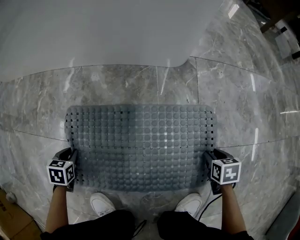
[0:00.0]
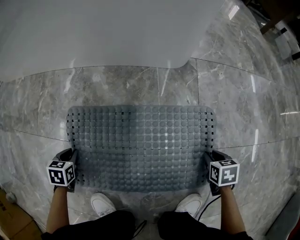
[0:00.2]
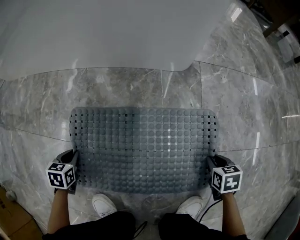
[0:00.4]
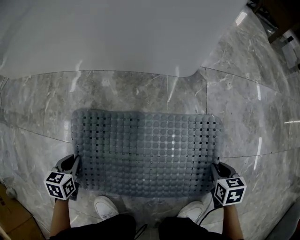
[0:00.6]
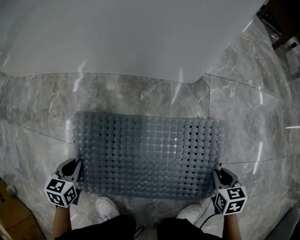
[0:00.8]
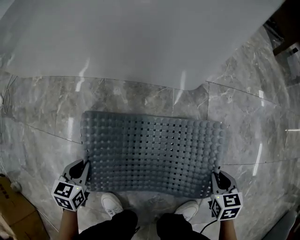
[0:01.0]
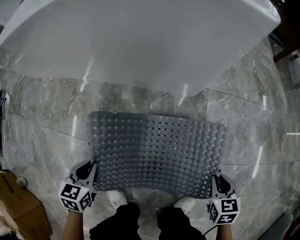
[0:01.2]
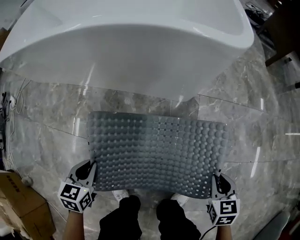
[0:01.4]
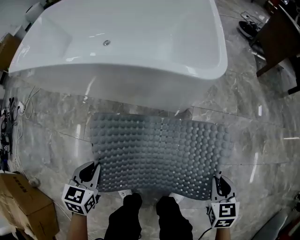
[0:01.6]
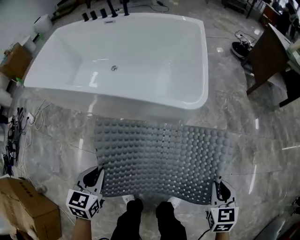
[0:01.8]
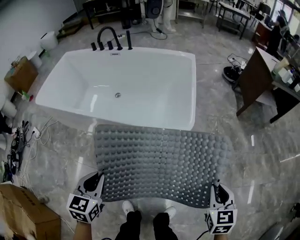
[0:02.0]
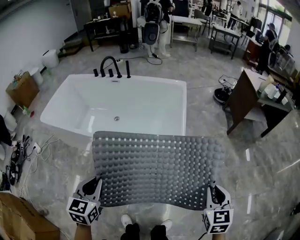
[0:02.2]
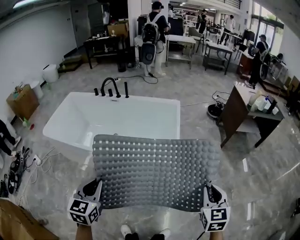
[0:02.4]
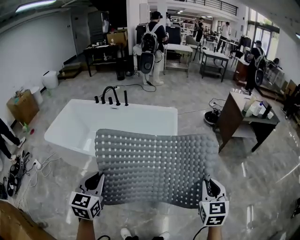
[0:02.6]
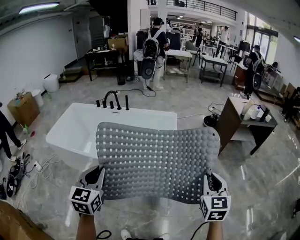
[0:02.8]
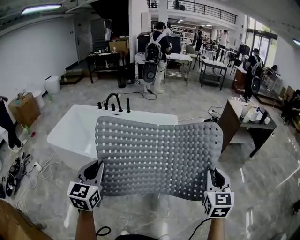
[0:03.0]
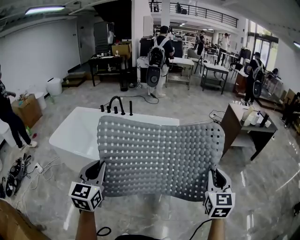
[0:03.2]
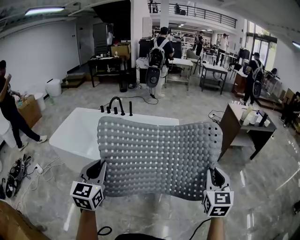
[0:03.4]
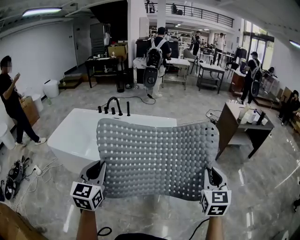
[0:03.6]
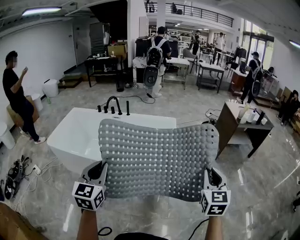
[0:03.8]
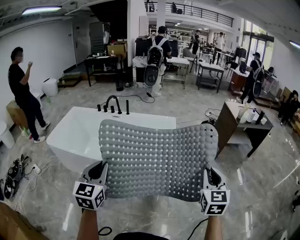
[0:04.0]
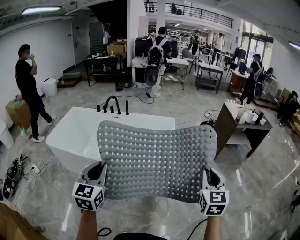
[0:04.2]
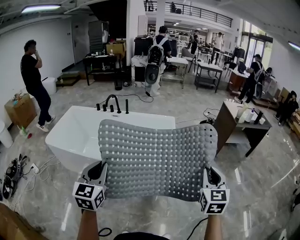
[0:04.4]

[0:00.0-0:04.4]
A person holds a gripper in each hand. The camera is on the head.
0:00.0 to 0:01.4: Both grippers move upward, about 35 cm. The right gripper changes its angle by about 20 degrees.
0:01.4 to 0:03.0: Both grippers move upward, some 80 cm. The right gripper tilts its fingers approximately 40 degrees upward, while the left gripper tilts its fingers approximately 40 degrees upward.
0:03.0 to 0:04.4: The grippers stay close to where they were, moving slightly.

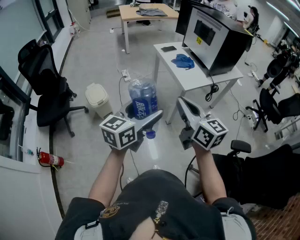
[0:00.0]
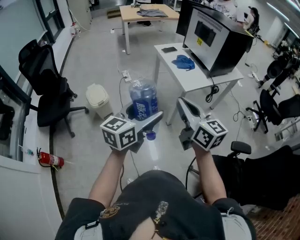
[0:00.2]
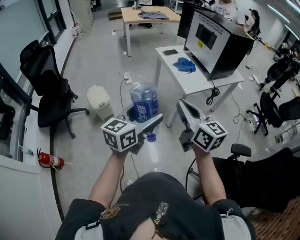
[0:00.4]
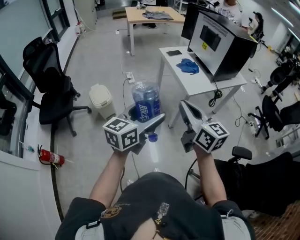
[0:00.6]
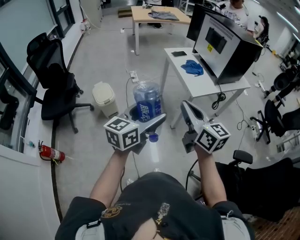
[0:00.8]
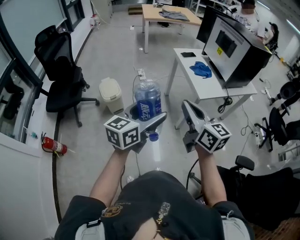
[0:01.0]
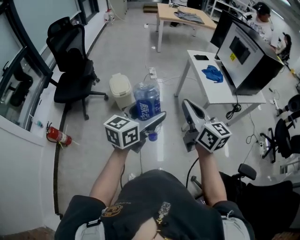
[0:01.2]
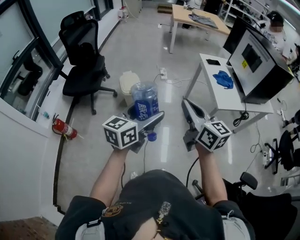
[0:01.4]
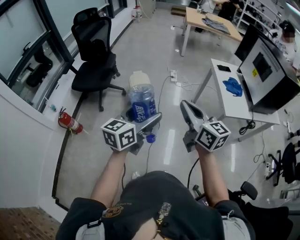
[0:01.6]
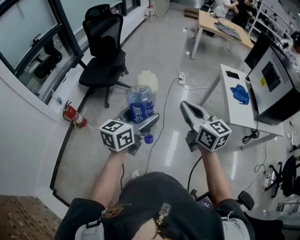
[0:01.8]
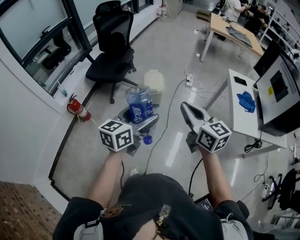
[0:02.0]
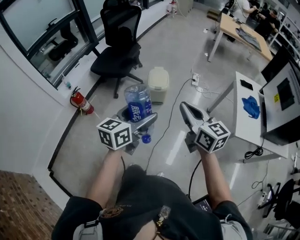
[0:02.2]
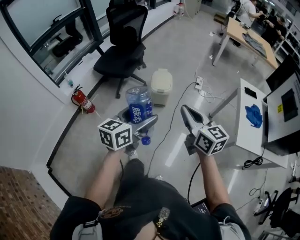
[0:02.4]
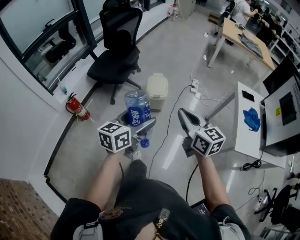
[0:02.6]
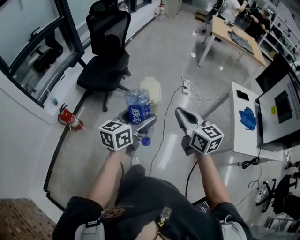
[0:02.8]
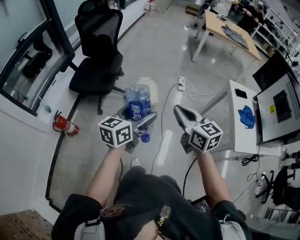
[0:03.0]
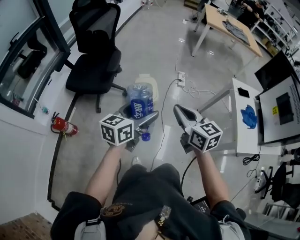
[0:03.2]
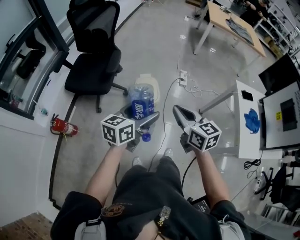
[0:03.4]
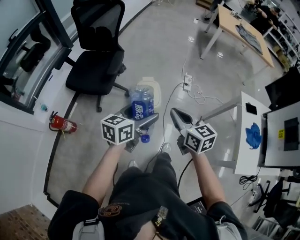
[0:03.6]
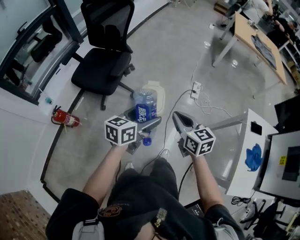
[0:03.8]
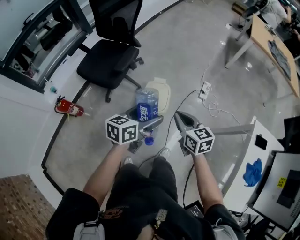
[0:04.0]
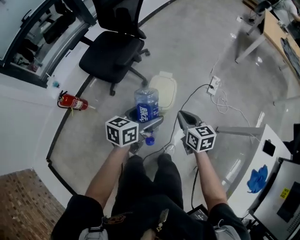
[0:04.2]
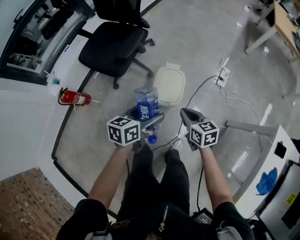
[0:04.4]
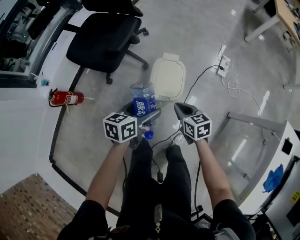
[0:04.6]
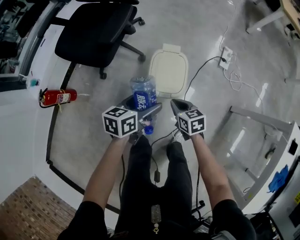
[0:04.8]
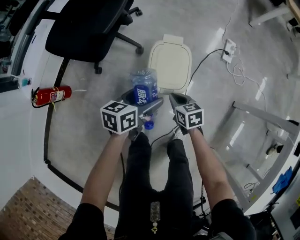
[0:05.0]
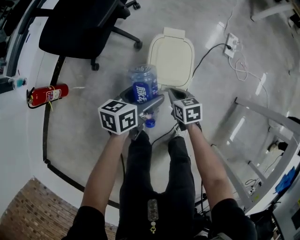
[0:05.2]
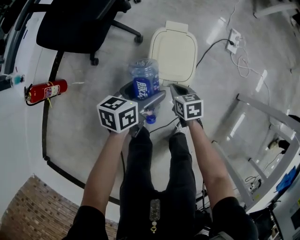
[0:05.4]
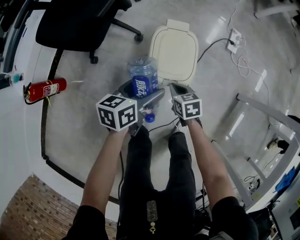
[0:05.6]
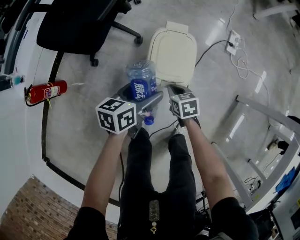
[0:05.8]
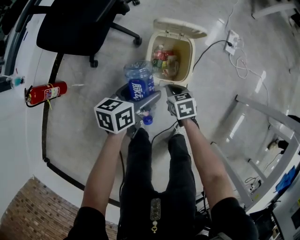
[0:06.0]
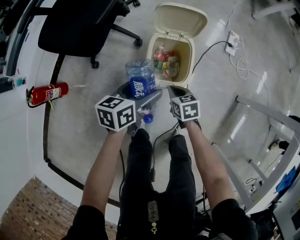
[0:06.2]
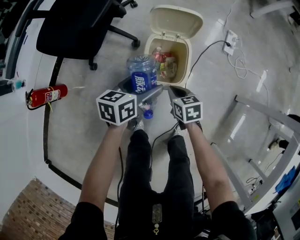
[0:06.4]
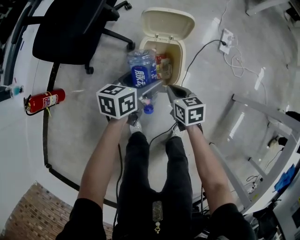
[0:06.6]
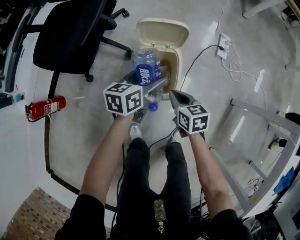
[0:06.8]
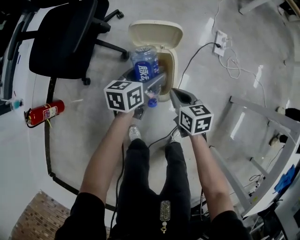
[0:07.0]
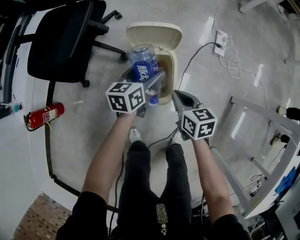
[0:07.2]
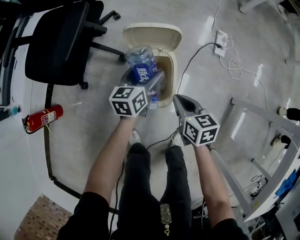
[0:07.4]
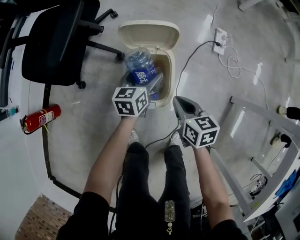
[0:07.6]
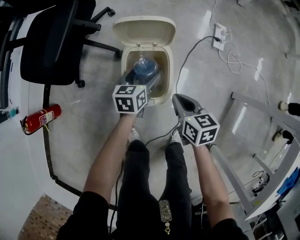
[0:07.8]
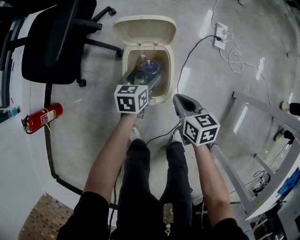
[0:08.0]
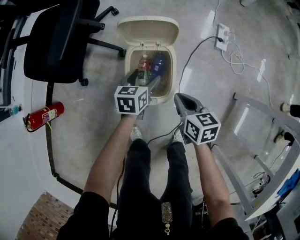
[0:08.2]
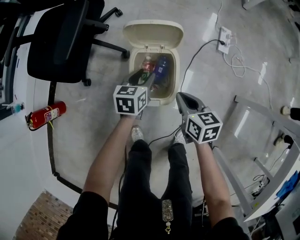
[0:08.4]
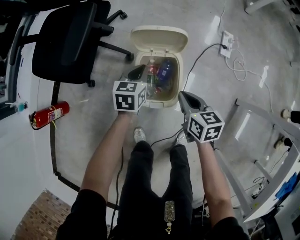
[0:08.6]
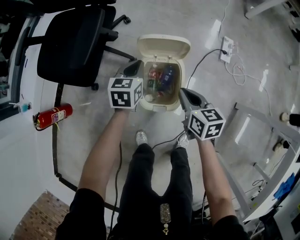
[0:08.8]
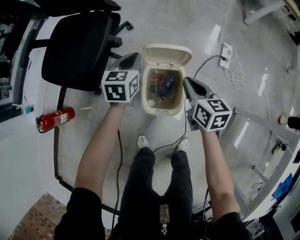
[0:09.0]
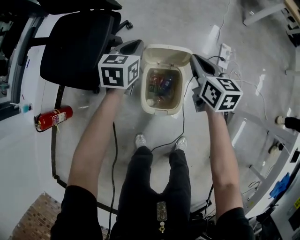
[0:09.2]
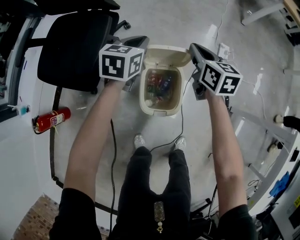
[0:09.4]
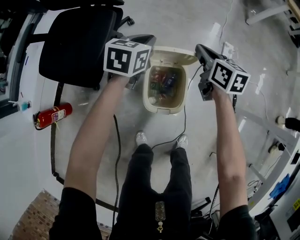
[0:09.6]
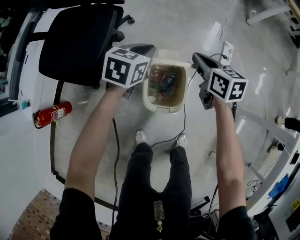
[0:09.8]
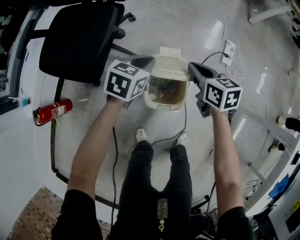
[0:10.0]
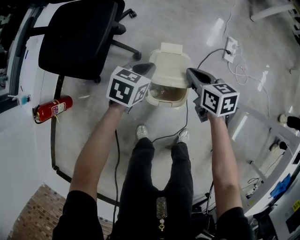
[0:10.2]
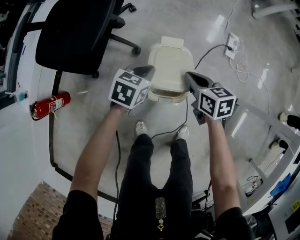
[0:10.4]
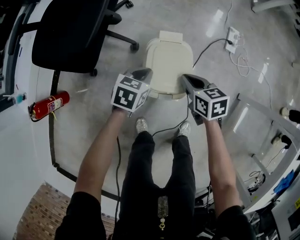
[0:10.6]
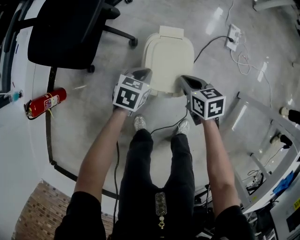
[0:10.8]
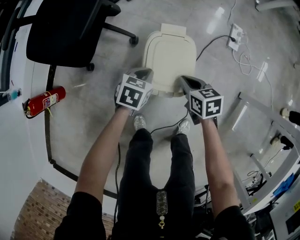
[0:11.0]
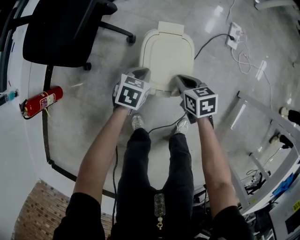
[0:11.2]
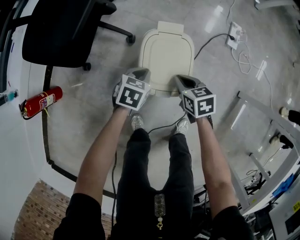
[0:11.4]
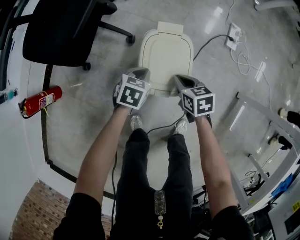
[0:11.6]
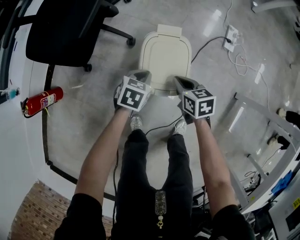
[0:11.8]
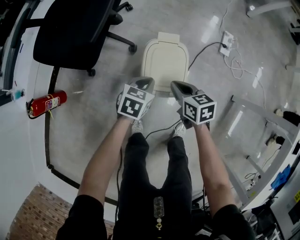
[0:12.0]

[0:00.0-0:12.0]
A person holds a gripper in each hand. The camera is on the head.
0:00.0 to 0:01.6: The left gripper changes place by approximately 20 cm, and changes its angle by approximately 30 degrees; the right gripper shifts by about 15 cm, and swivels some 30 degrees.
0:01.6 to 0:03.0: The two grippers go some 20 cm forward.
0:03.0 to 0:04.4: The left gripper goes approximately 35 cm forward and downward, and rotates approximately 30 degrees. Meanwhile the right gripper travels downward and forward by roughly 40 cm, and rotates approximately 30 degrees.
0:04.4 to 0:06.0: The two grippers go approximately 25 cm downward. The right gripper swivels approximately 20 degrees.
0:06.0 to 0:07.6: The right gripper heads to the right and upward, covering approximately 15 cm, and turns by some 20 degrees, while the left gripper travels forward, to the right and downward by about 20 cm.
0:07.6 to 0:09.0: The left gripper travels upward, forward and to the left by roughly 20 cm, and closes. The right gripper heads forward and upward, covering about 15 cm.
0:09.0 to 0:10.4: The right gripper heads downward, covering approximately 5 cm, and reaches approximately 10 cm forward, then returns. The left gripper heads backward and downward, covering approximately 10 cm, and changes its angle by some 30 degrees.
0:10.4 to 0:12.0: The two grippers go some 5 cm backward. The left gripper reaches roughly 10 cm downward, then returns. The right gripper reaches roughly 10 cm downward, then returns.

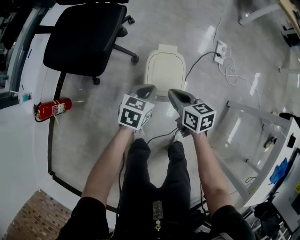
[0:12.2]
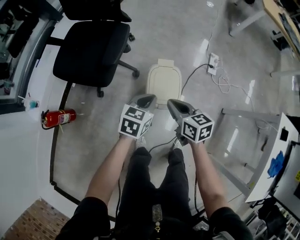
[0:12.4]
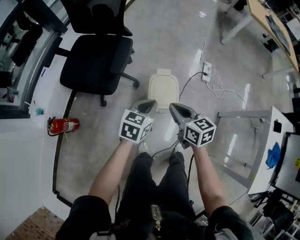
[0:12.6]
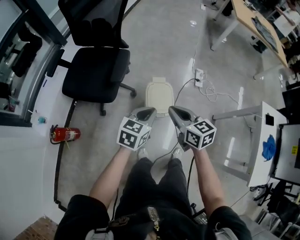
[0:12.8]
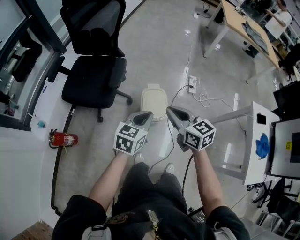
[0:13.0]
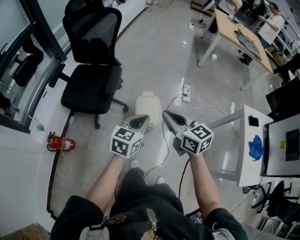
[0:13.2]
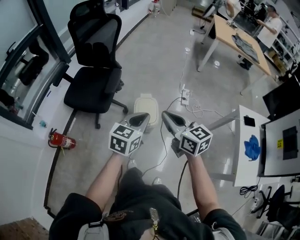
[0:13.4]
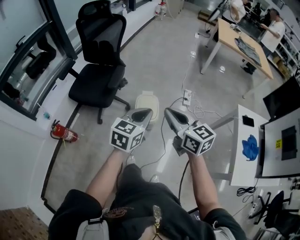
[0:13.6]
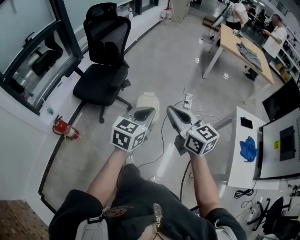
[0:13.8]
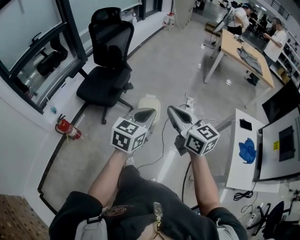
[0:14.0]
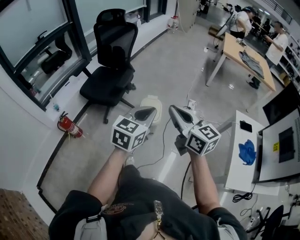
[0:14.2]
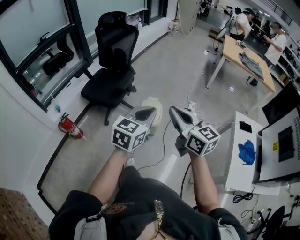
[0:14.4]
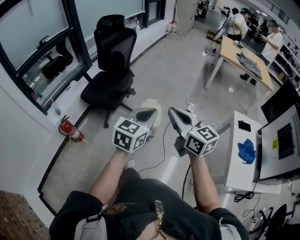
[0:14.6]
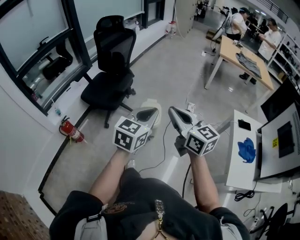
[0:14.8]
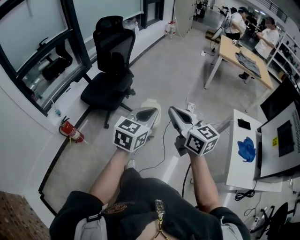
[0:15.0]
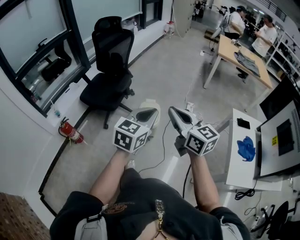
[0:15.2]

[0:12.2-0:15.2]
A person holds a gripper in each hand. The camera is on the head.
0:12.2 to 0:13.8: The grippers both shift upward and backward by roughly 50 cm. The right gripper swivels about 40 degrees, while the left gripper changes its angle by approximately 30 degrees.
0:13.8 to 0:15.2: The right gripper heads backward, covering roughly 5 cm, while the left gripper shifts some 10 cm backward and upward.

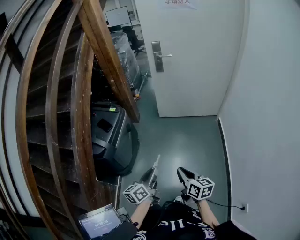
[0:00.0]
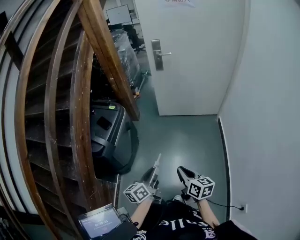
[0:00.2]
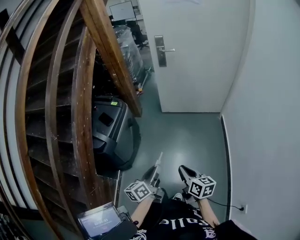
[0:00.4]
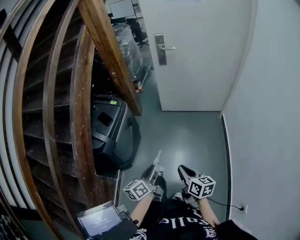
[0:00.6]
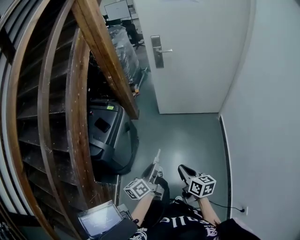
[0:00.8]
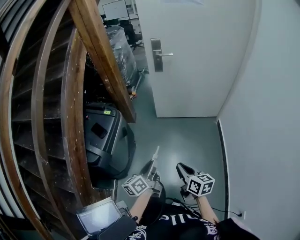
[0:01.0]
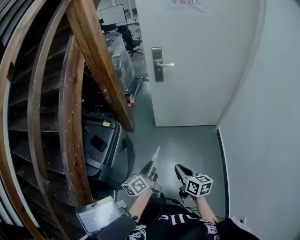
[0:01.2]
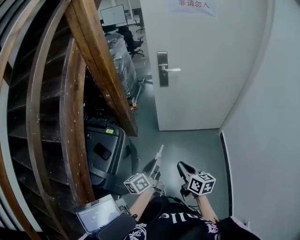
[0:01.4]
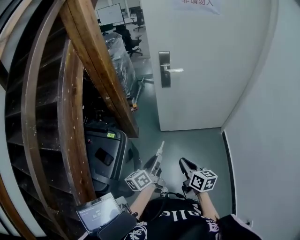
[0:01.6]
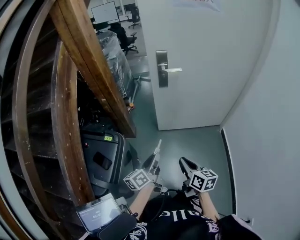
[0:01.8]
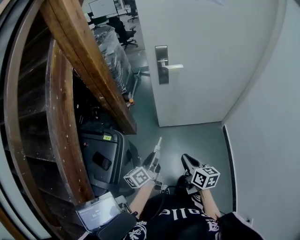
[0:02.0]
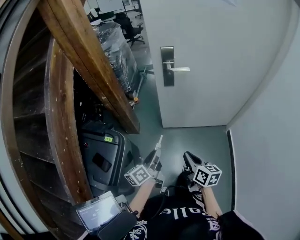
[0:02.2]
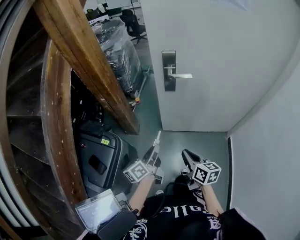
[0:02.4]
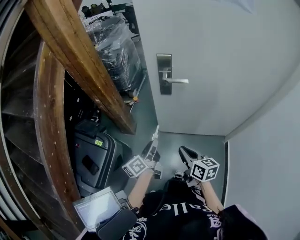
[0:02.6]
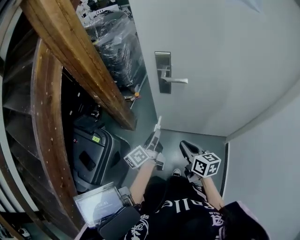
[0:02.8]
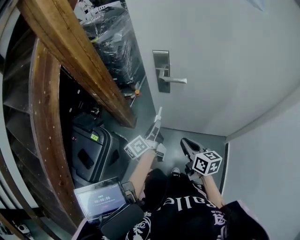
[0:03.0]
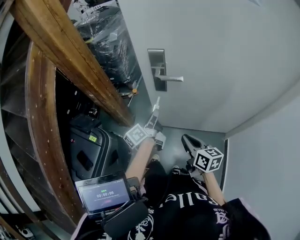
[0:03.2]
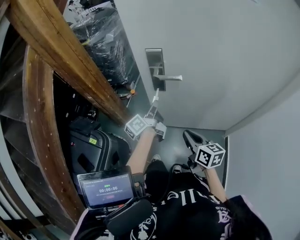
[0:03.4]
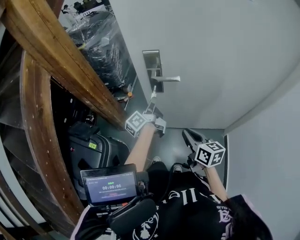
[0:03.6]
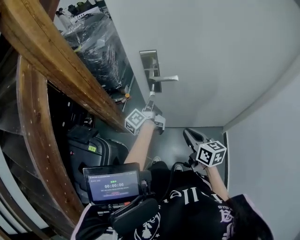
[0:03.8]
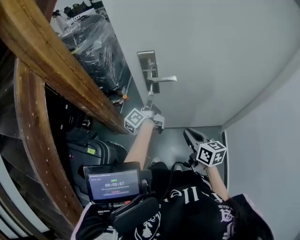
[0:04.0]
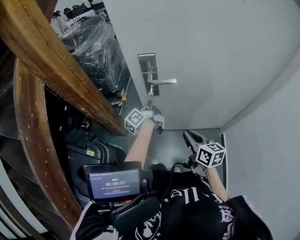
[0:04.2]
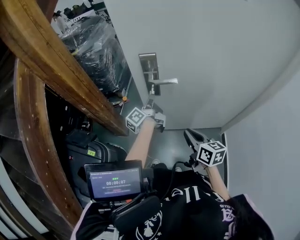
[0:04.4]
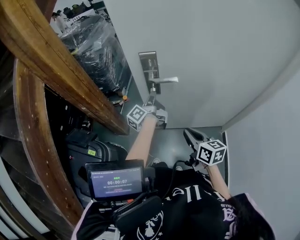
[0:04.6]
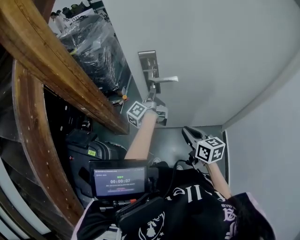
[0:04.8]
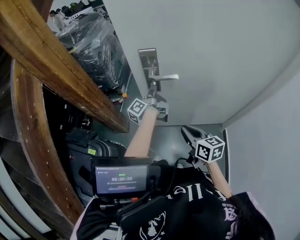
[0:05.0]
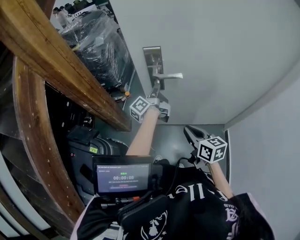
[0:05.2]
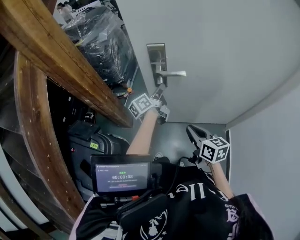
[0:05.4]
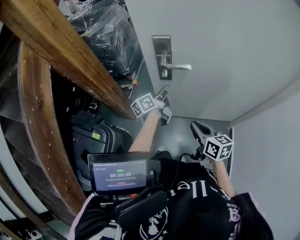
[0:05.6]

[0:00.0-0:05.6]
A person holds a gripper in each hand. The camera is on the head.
0:00.0 to 0:01.4: The grippers both shift forward by about 30 cm.
0:01.4 to 0:02.8: Both grippers move forward, about 35 cm.
0:02.8 to 0:04.2: The right gripper ends up approximately 5 cm from where it was. Meanwhile the left gripper goes some 20 cm forward.
0:04.2 to 0:05.6: The left gripper swivels approximately 20 degrees.
